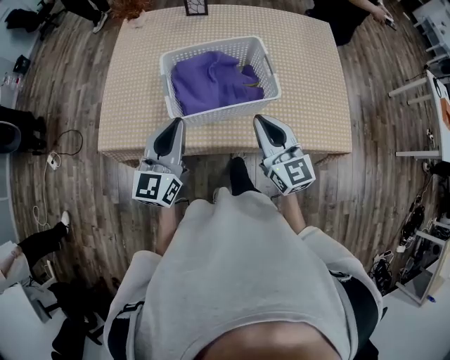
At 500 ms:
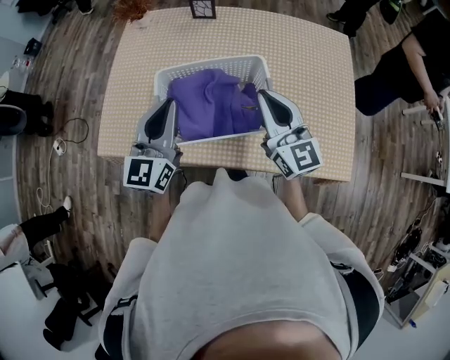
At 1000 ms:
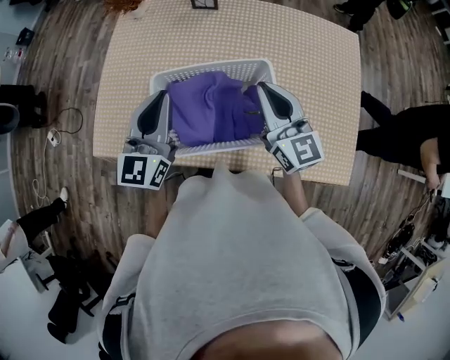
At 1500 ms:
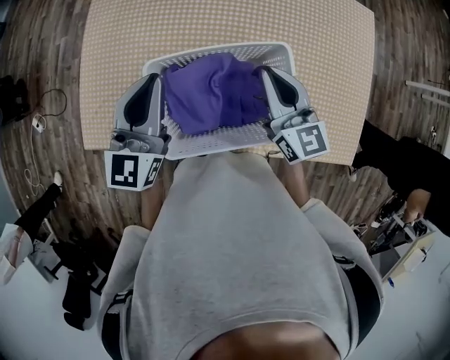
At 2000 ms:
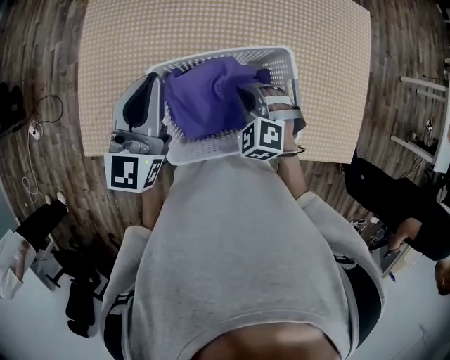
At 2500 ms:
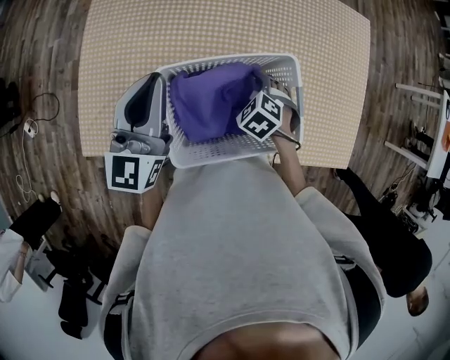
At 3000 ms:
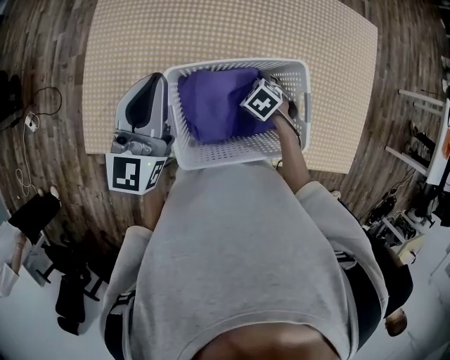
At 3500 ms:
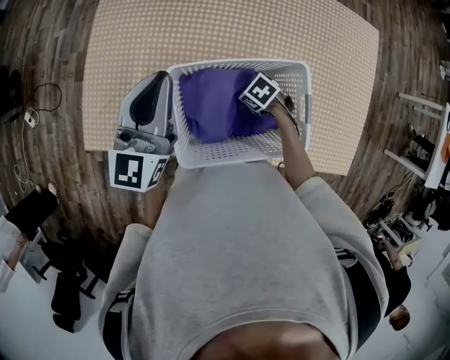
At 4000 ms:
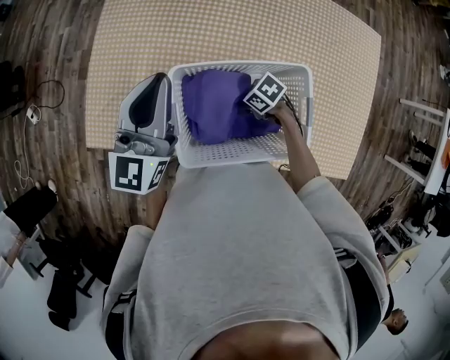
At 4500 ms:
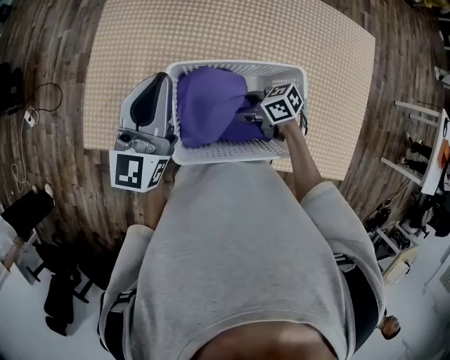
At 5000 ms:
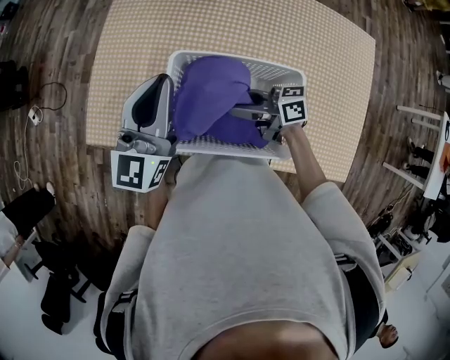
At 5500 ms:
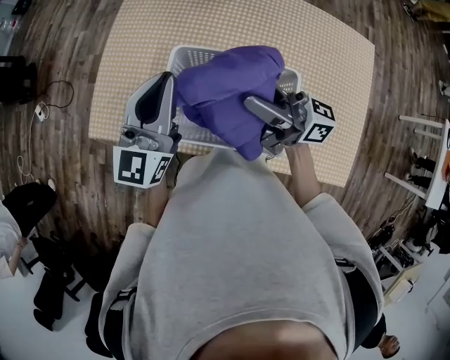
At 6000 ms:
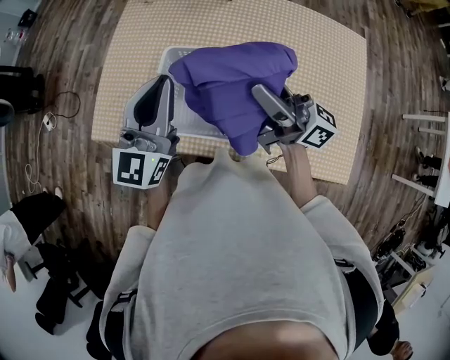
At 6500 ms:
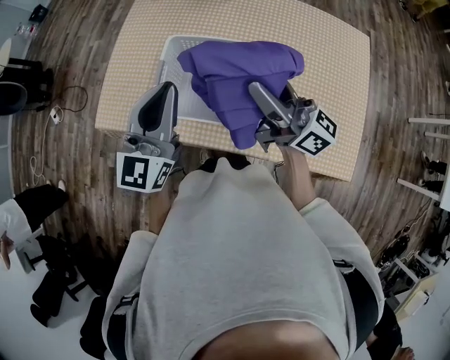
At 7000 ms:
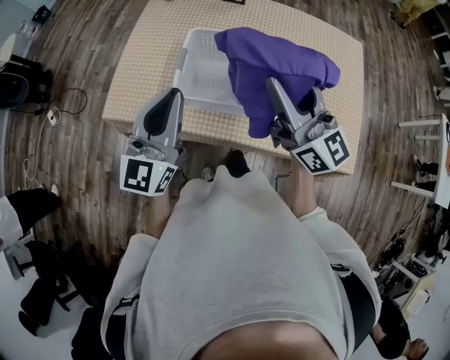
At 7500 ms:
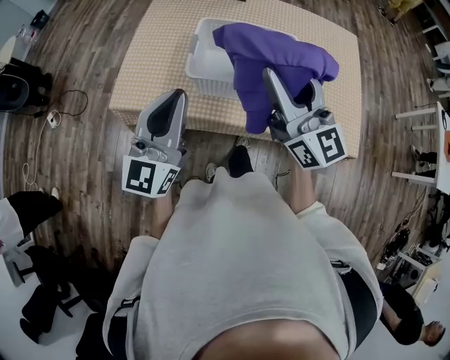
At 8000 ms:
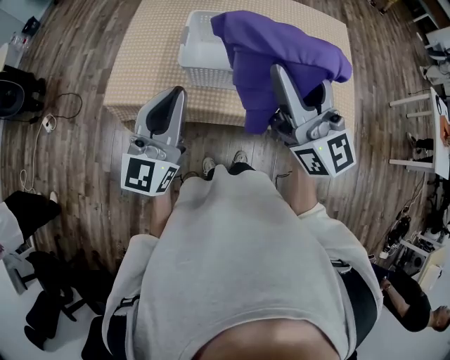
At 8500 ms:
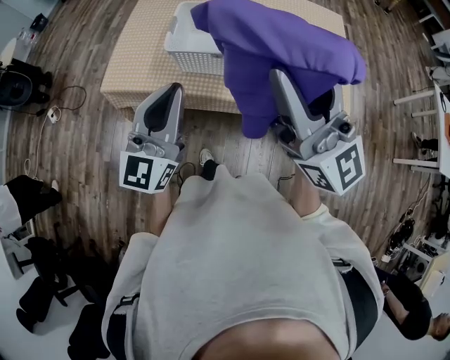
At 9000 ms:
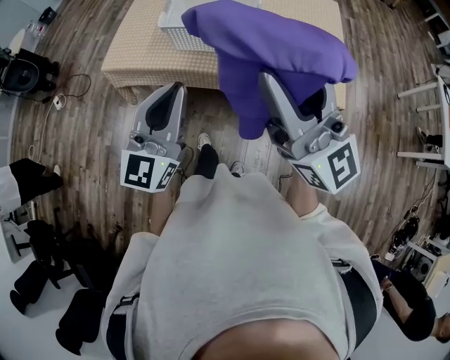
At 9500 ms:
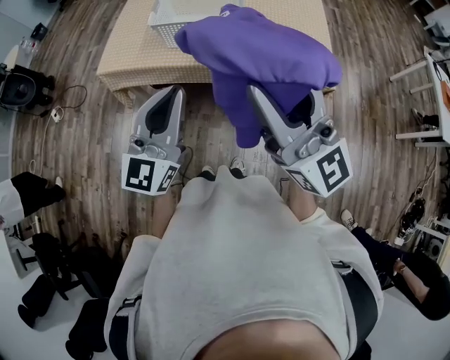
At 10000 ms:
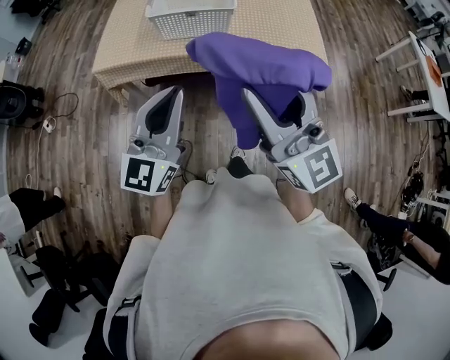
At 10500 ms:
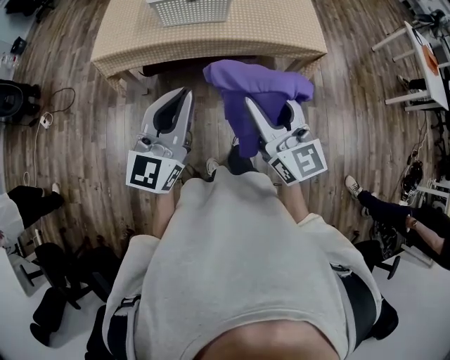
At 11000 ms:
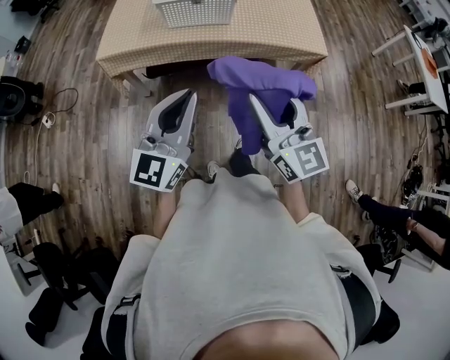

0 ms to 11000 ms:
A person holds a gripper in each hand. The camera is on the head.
0 ms to 2000 ms: The left gripper moves forward, roughly 25 cm; the right gripper is displaced forward and downward by about 30 cm, and angles its fingers downward, by approximately 50 degrees.
2000 ms to 3500 ms: The right gripper is displaced downward by roughly 15 cm, rotates some 50 degrees, and opens its fingers.
3500 ms to 5500 ms: The left gripper moves some 10 cm, while the right gripper is displaced upward by some 35 cm, tips its fingers upward by about 90 degrees, and closes its fingers.
5500 ms to 7500 ms: The left gripper heads backward, covering roughly 25 cm; the right gripper goes roughly 20 cm backward and upward, and rotates around the line of its fingers by approximately 50 degrees, counterclockwise from behind.
7500 ms to 9000 ms: The left gripper heads backward and to the right, covering roughly 25 cm; the right gripper travels backward by approximately 30 cm.
9000 ms to 11000 ms: The right gripper is displaced backward and downward by some 25 cm, and turns by about 30 degrees. The left gripper travels backward by approximately 20 cm.

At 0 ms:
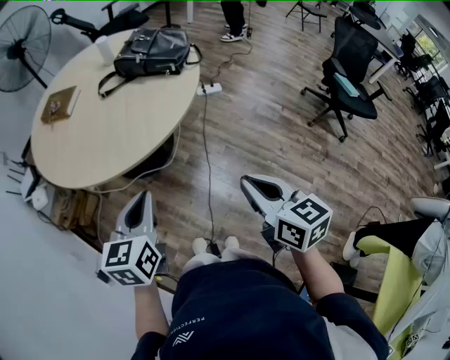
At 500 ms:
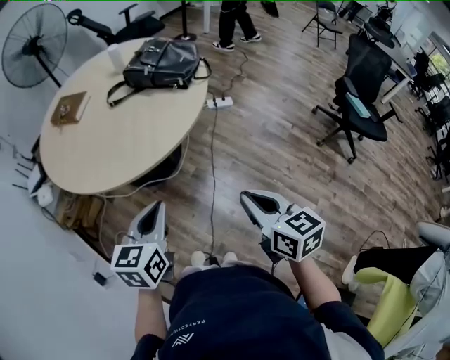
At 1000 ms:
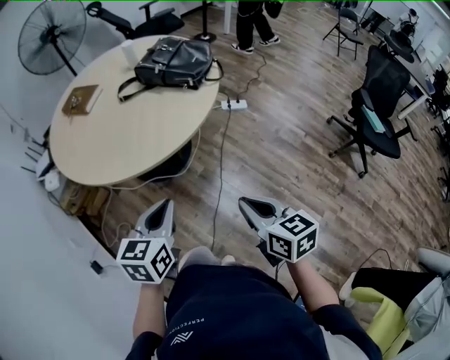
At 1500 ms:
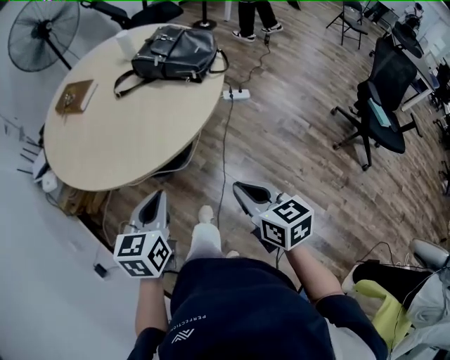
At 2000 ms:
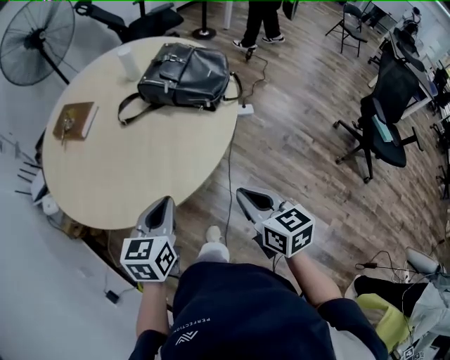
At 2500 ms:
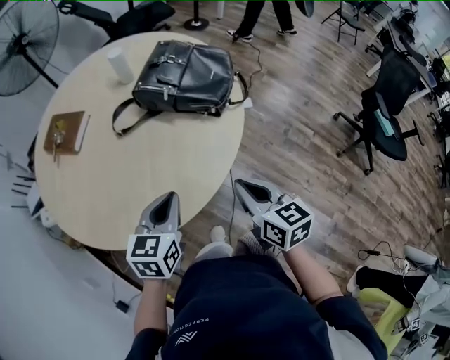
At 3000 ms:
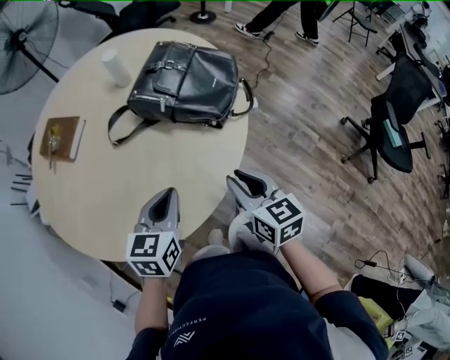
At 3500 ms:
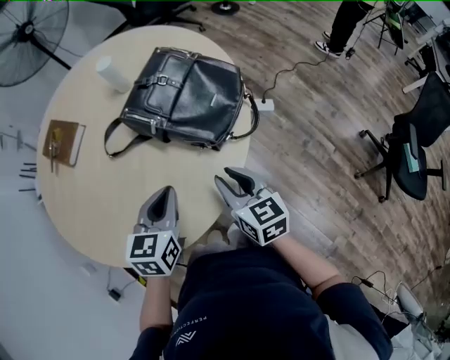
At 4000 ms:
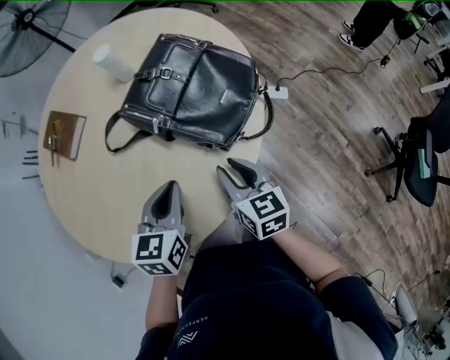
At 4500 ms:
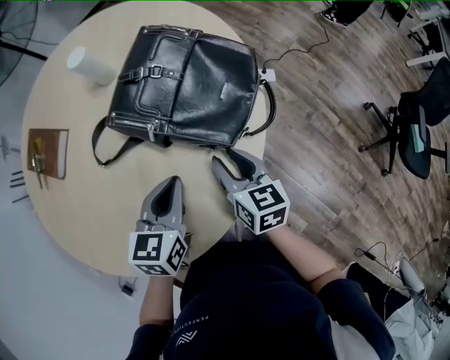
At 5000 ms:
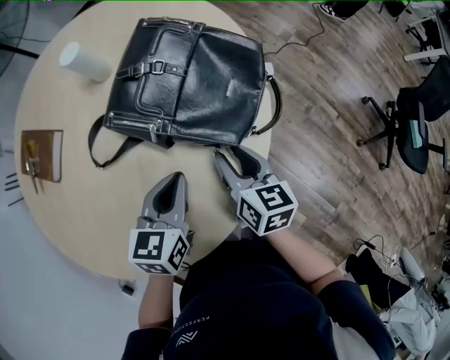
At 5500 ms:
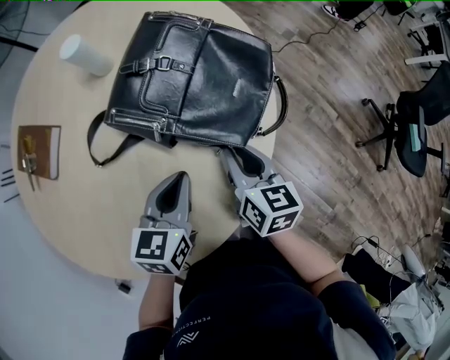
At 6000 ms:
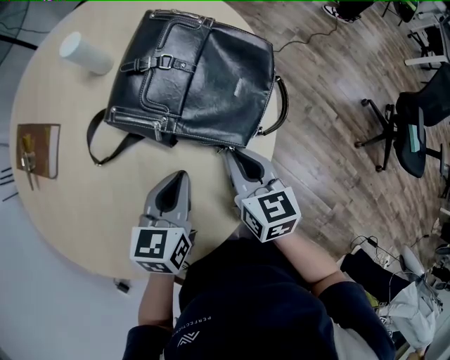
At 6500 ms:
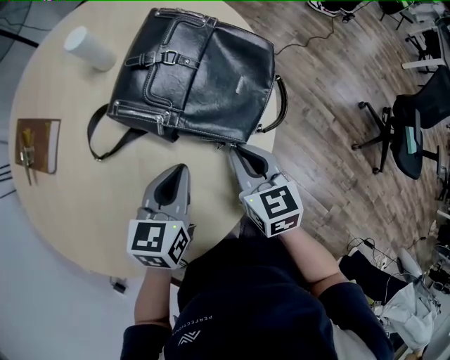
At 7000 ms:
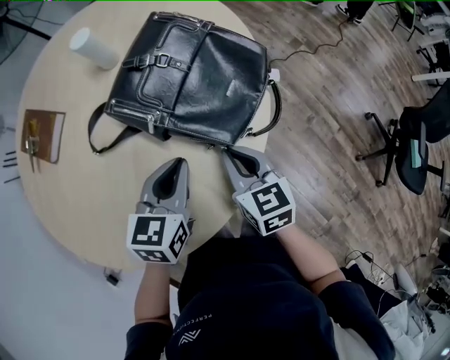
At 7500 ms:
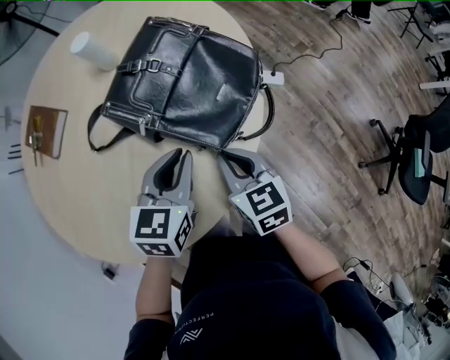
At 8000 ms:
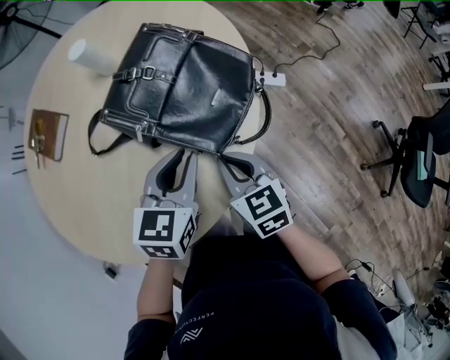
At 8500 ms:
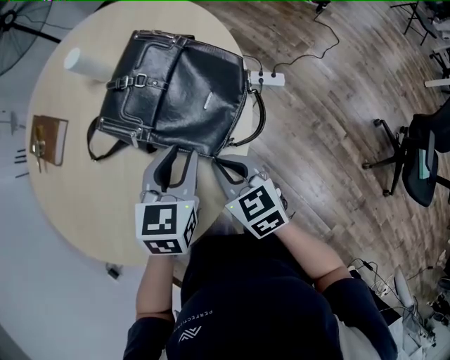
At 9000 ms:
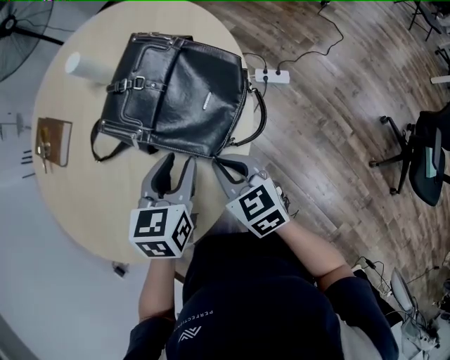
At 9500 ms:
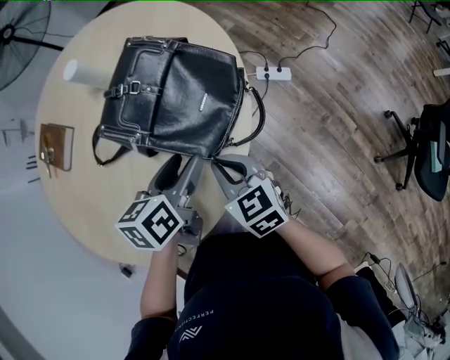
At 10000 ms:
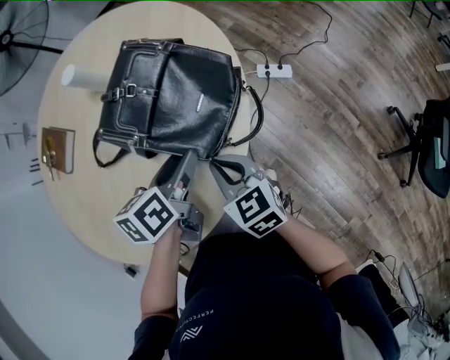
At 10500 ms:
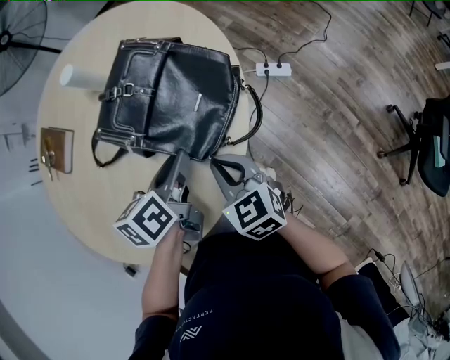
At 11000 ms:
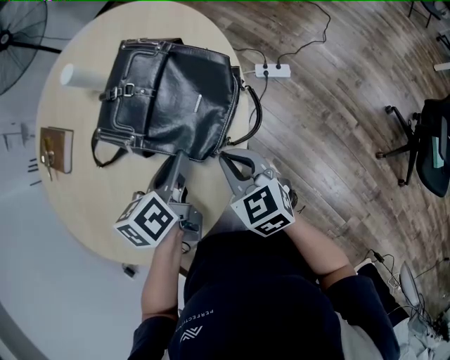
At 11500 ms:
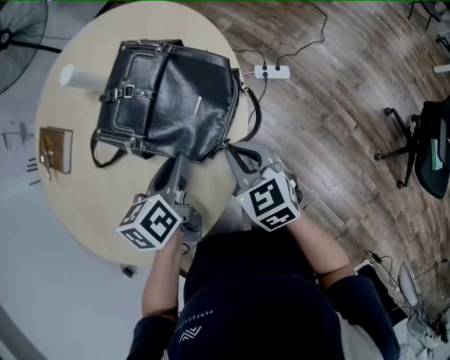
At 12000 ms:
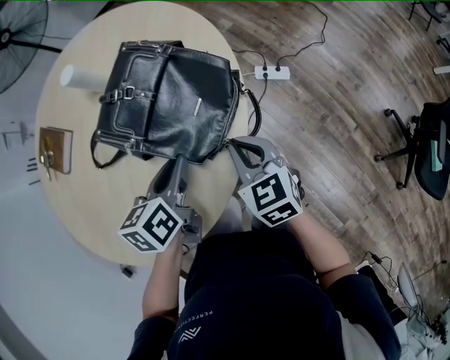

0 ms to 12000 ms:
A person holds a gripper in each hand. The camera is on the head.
0 ms to 2000 ms: The two grippers go some 20 cm forward.
2000 ms to 4000 ms: Both grippers travel together forward, some 25 cm. The right gripper opens up.
4000 ms to 6000 ms: The right gripper closes its fingers, while the left gripper changes place by roughly 5 cm.
6000 ms to 8000 ms: The right gripper turns by roughly 20 degrees. The left gripper moves to the right, some 10 cm.
8000 ms to 10000 ms: The left gripper rotates some 30 degrees, and opens its fingers.
10000 ms to 12000 ms: The right gripper goes roughly 5 cm to the right. The left gripper closes.

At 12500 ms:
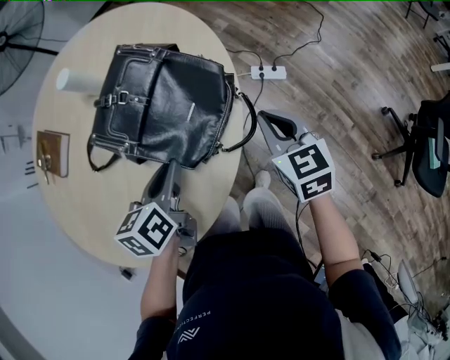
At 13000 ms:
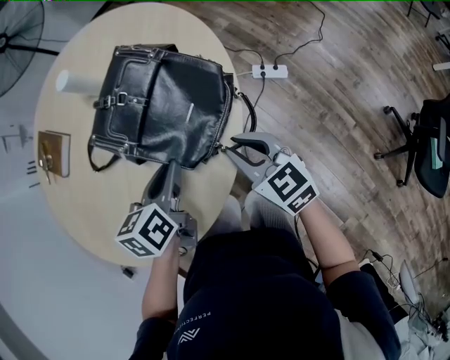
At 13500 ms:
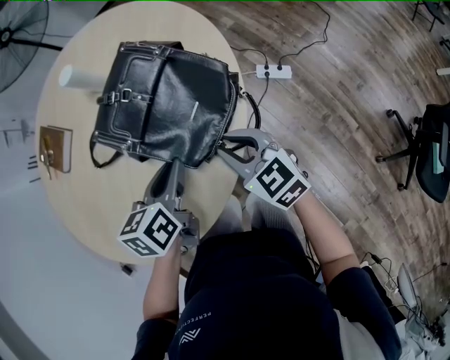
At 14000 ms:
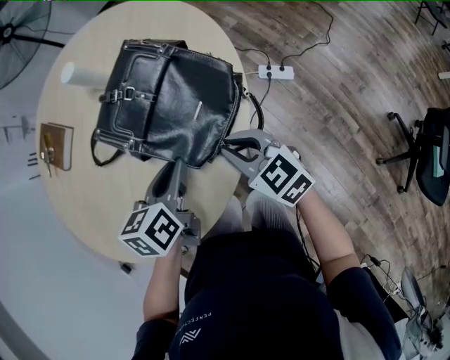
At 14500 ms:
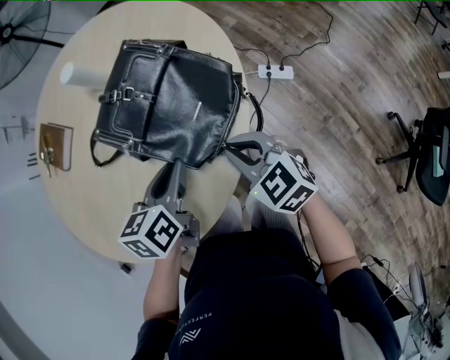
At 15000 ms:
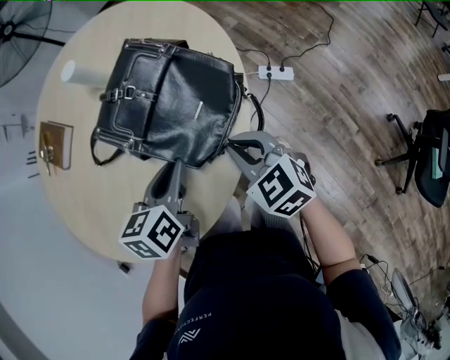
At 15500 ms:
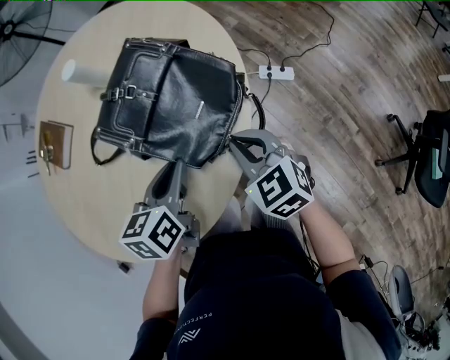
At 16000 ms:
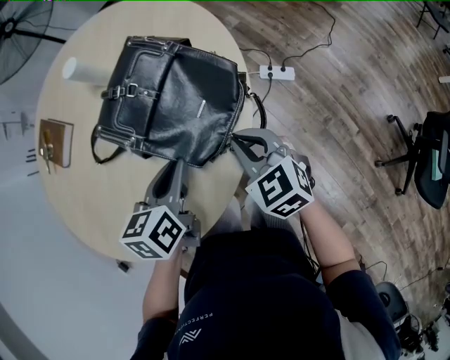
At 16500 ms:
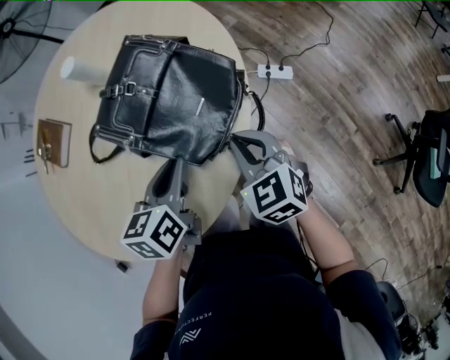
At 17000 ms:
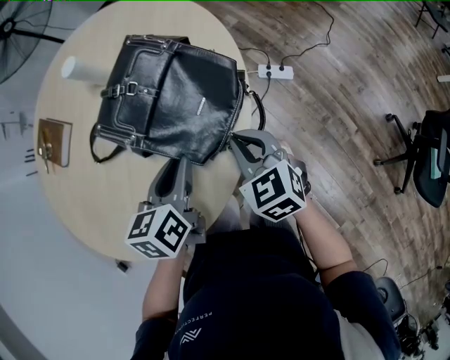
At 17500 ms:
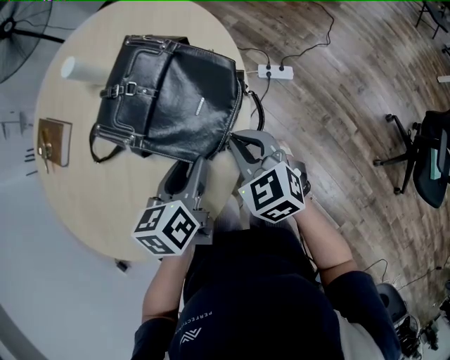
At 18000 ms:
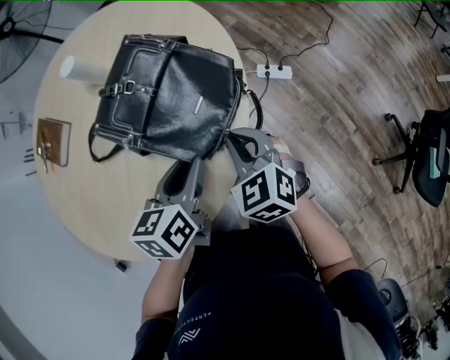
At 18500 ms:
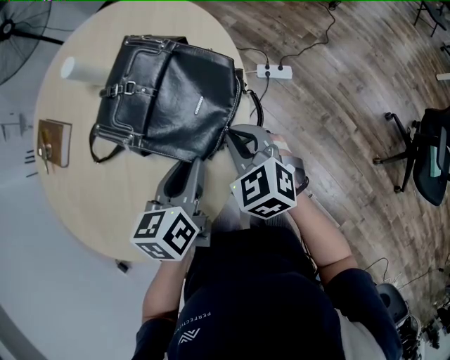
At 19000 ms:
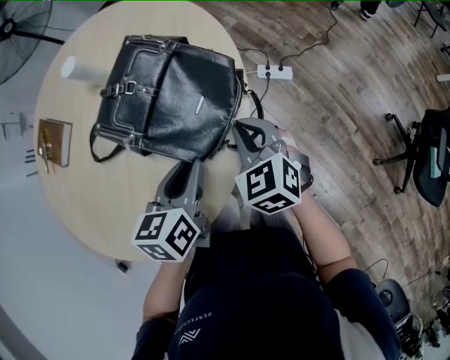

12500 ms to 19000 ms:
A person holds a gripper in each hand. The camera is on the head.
12500 ms to 14500 ms: The right gripper shifts some 10 cm to the left, and turns by some 30 degrees.
14500 ms to 17000 ms: The grippers make only small movements.
17000 ms to 19000 ms: The grippers move only a little.
